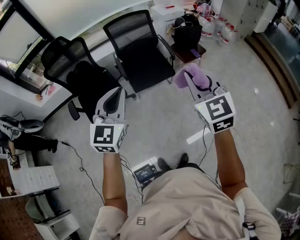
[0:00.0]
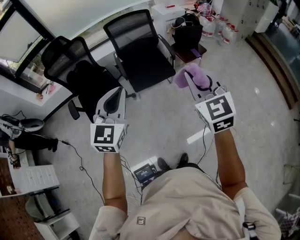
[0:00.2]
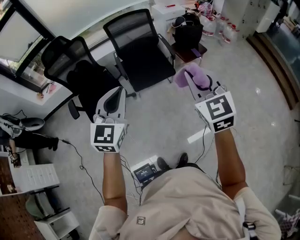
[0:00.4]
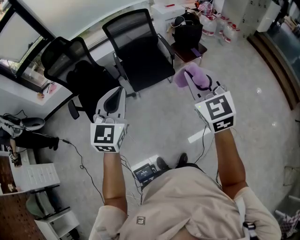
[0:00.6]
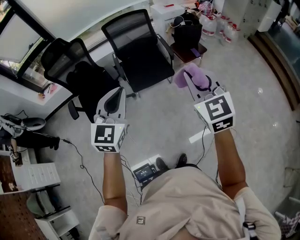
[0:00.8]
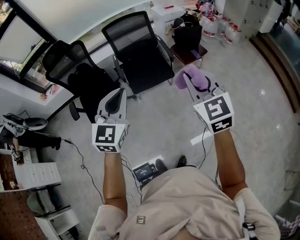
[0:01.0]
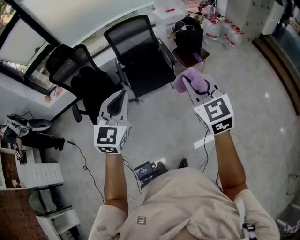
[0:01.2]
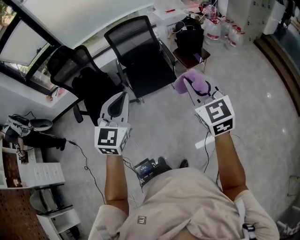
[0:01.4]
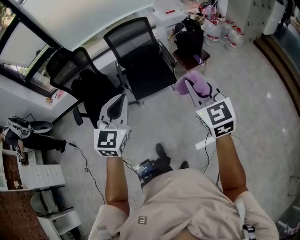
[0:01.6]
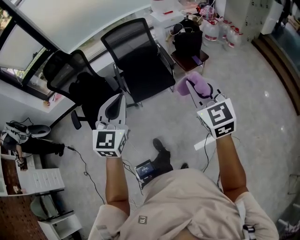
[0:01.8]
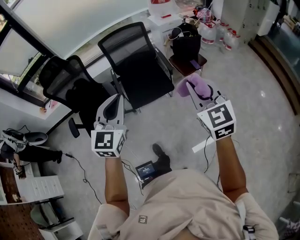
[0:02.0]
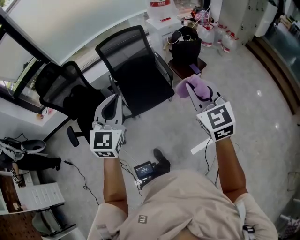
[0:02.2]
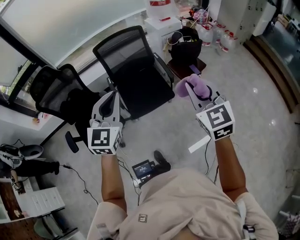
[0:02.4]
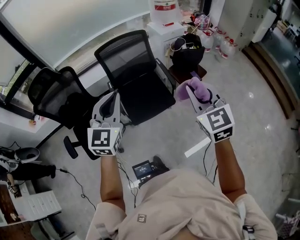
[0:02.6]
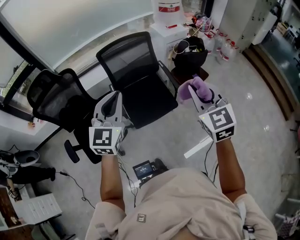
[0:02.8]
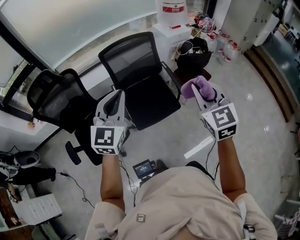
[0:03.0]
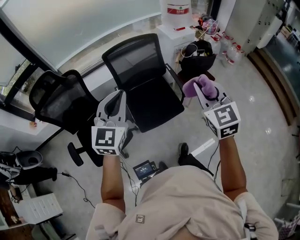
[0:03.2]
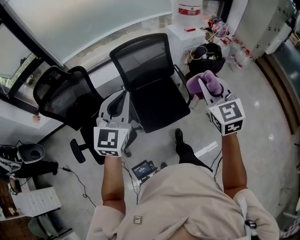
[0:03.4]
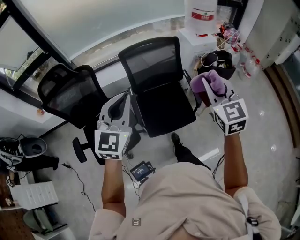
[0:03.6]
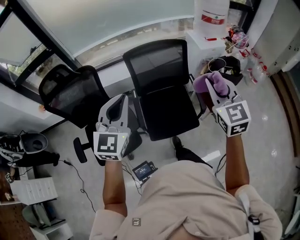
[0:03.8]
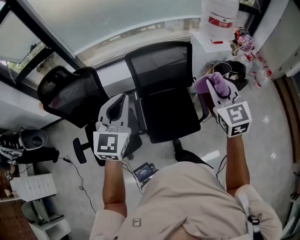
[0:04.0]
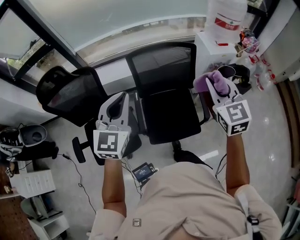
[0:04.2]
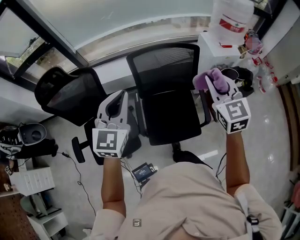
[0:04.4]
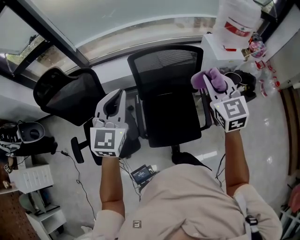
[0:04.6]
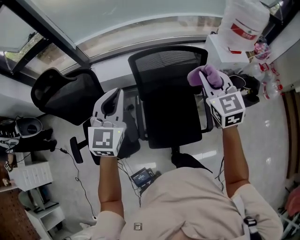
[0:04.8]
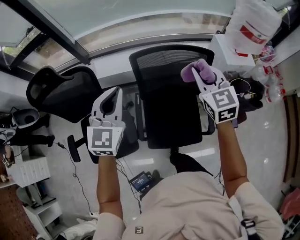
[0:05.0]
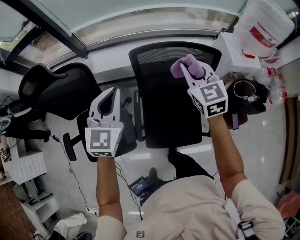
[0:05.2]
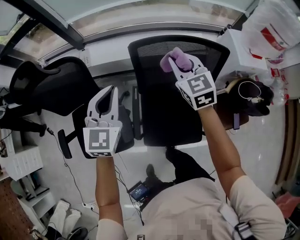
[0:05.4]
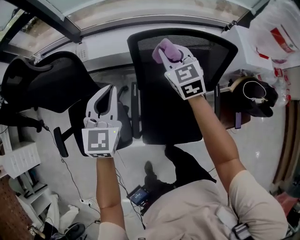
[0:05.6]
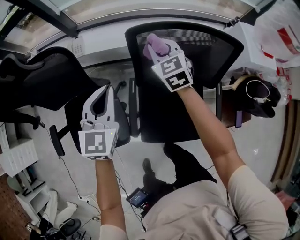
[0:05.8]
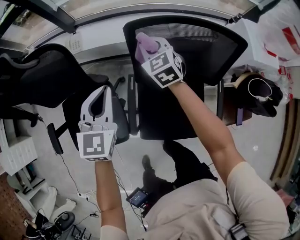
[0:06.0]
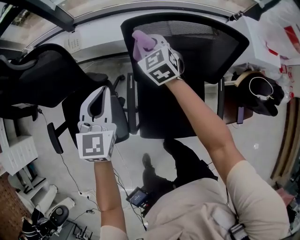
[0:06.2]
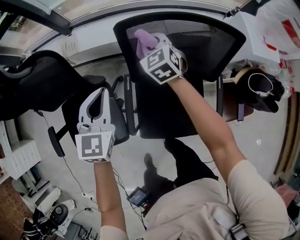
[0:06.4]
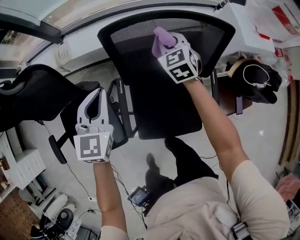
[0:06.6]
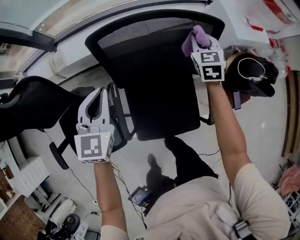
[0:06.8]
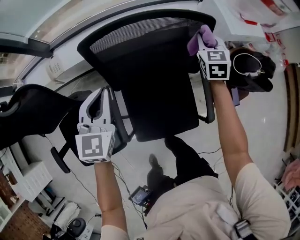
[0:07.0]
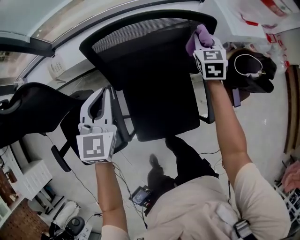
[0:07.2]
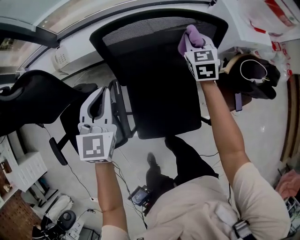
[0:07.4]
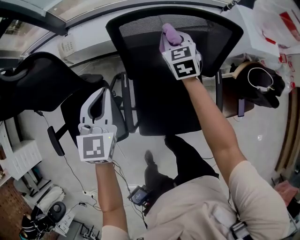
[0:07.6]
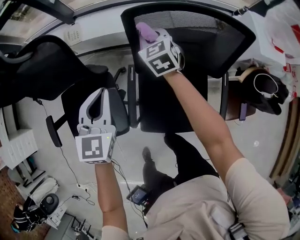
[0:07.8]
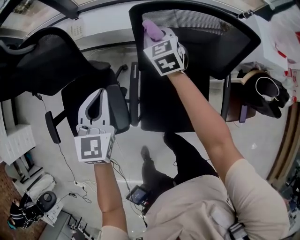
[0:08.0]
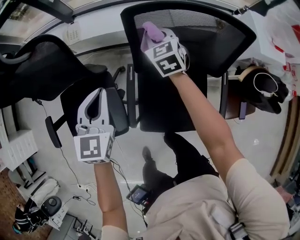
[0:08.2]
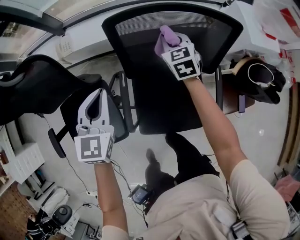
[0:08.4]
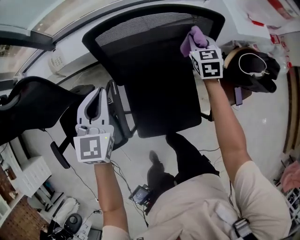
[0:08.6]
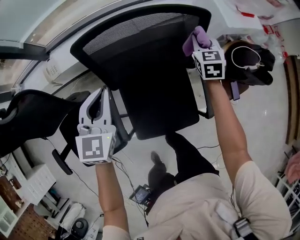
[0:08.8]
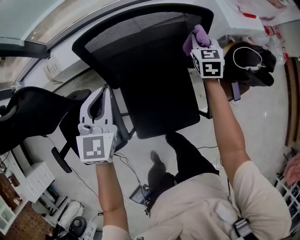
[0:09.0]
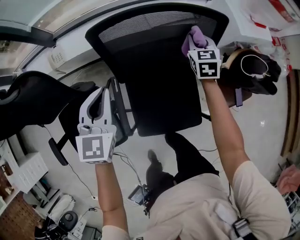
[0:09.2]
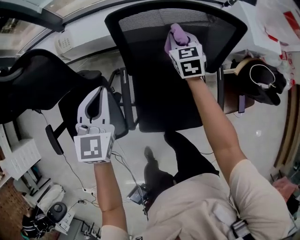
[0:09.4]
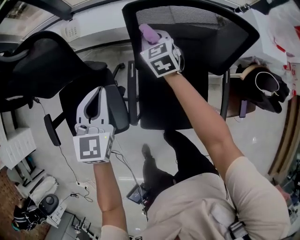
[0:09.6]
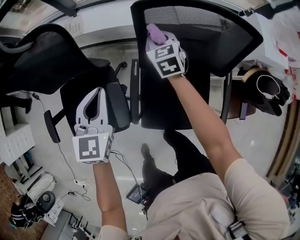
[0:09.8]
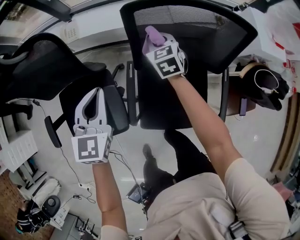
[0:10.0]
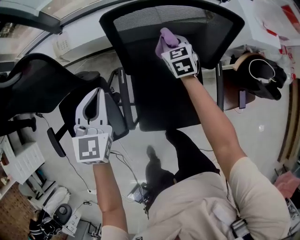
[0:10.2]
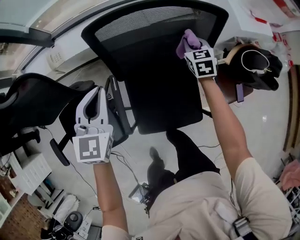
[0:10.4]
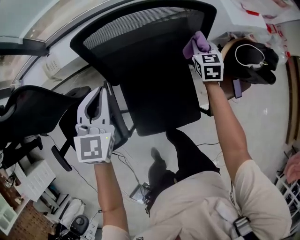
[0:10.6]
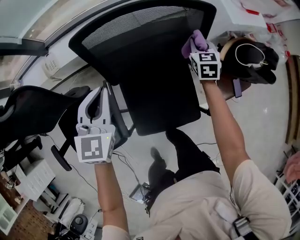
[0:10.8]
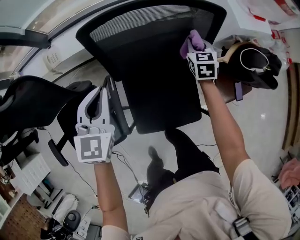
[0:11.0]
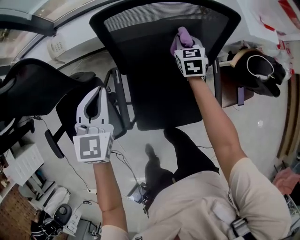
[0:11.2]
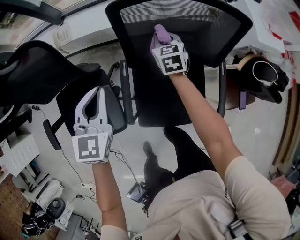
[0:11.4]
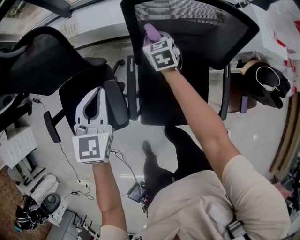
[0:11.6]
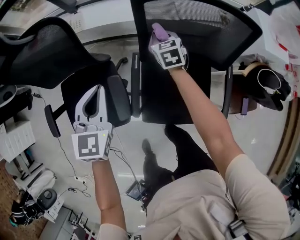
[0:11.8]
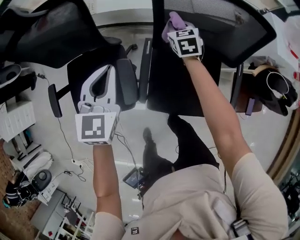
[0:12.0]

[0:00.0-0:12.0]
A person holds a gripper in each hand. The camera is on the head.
0:00.0 to 0:01.6: Both grippers move to the right, about 10 cm.
0:01.6 to 0:03.0: Both grippers move forward and to the left, about 35 cm.
0:03.0 to 0:04.4: The two grippers go some 30 cm forward.
0:04.4 to 0:06.0: The right gripper travels downward, forward and to the left by approximately 50 cm, and swivels approximately 20 degrees; the left gripper heads downward and forward, covering approximately 30 cm, and rotates some 20 degrees.
0:07.6 to 0:09.0: The left gripper ends up approximately 10 cm from where it was. Meanwhile the right gripper ends up about 25 cm from where it was, and changes its angle by approximately 20 degrees.
0:09.0 to 0:10.4: The right gripper shifts about 5 cm downward, and goes to the left and returns, about 40 cm each way, while the left gripper reaches some 20 cm to the left, then returns.
0:10.4 to 0:12.0: The left gripper changes place by roughly 15 cm; the right gripper ends up approximately 30 cm from where it was.

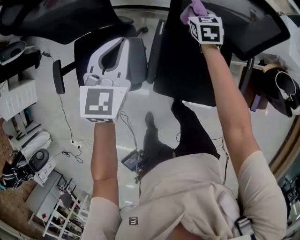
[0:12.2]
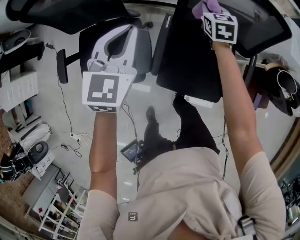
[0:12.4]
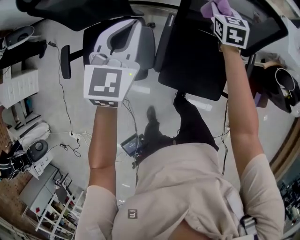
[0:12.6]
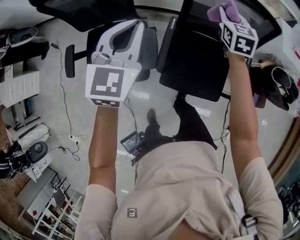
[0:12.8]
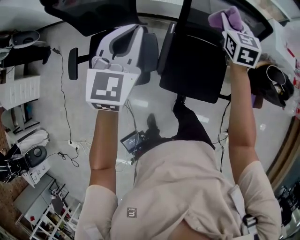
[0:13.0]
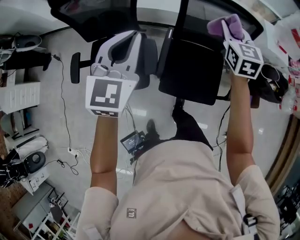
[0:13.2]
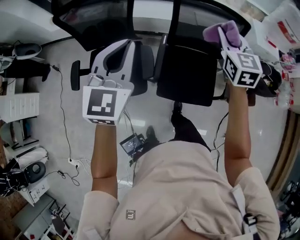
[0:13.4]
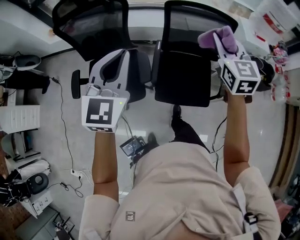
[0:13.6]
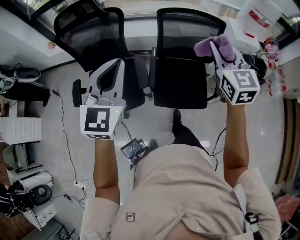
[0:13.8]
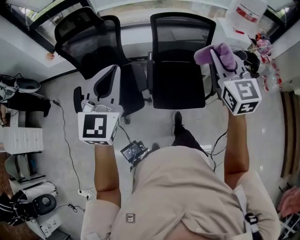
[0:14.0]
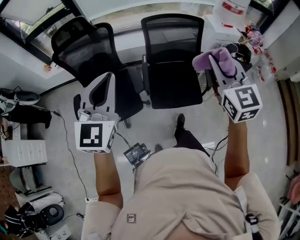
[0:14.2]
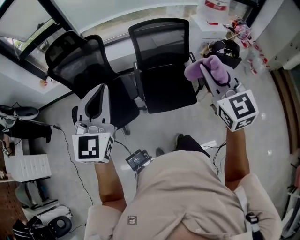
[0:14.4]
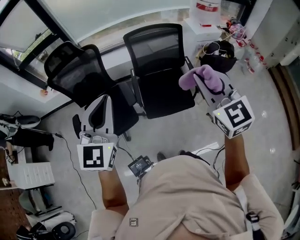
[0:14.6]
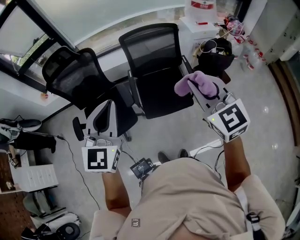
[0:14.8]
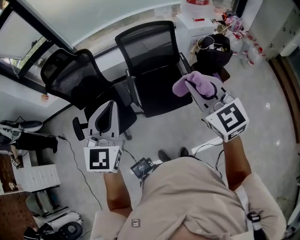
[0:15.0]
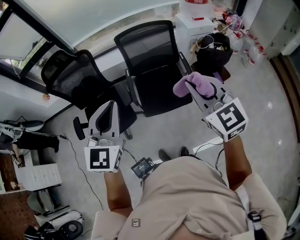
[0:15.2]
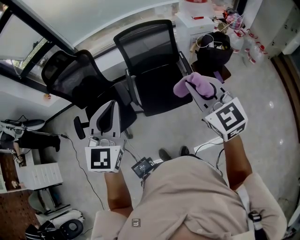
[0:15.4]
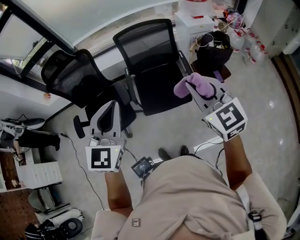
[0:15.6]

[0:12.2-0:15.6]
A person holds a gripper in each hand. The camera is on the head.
0:12.2 to 0:13.8: The left gripper is displaced upward and backward by about 40 cm, and swivels approximately 20 degrees. Meanwhile the right gripper heads upward and backward, covering roughly 60 cm, and changes its angle by roughly 30 degrees.
0:13.8 to 0:15.6: The left gripper travels to the right, backward and upward by about 25 cm. The right gripper shifts approximately 30 cm backward and to the right.

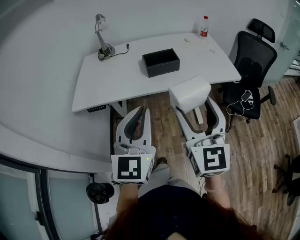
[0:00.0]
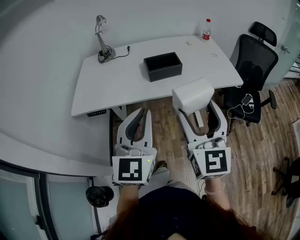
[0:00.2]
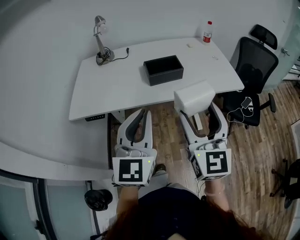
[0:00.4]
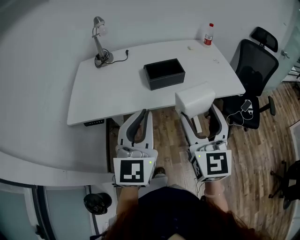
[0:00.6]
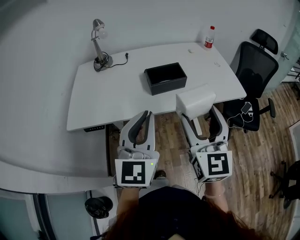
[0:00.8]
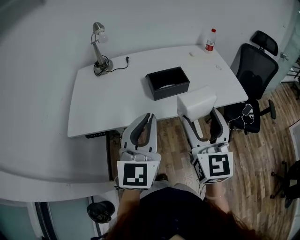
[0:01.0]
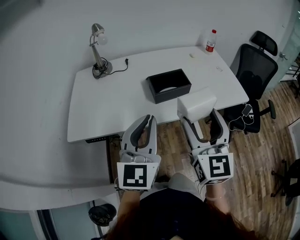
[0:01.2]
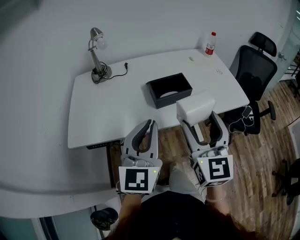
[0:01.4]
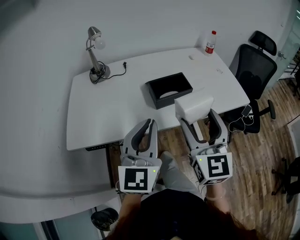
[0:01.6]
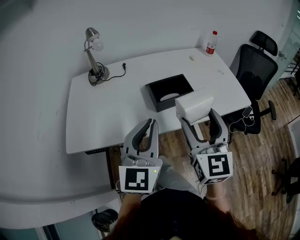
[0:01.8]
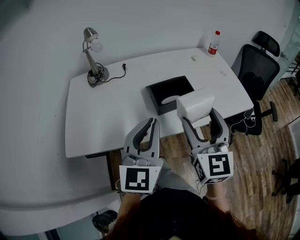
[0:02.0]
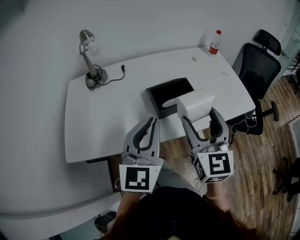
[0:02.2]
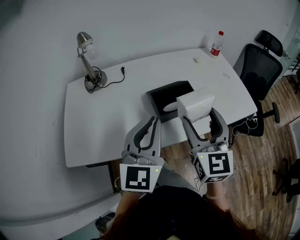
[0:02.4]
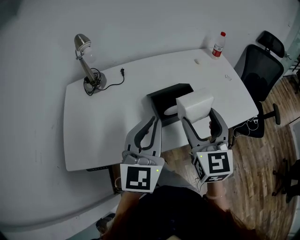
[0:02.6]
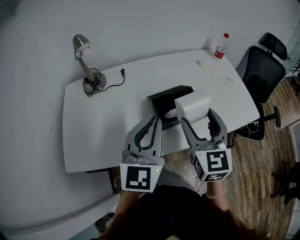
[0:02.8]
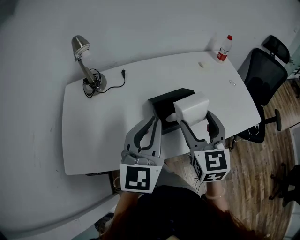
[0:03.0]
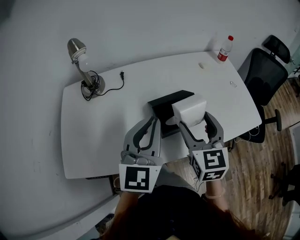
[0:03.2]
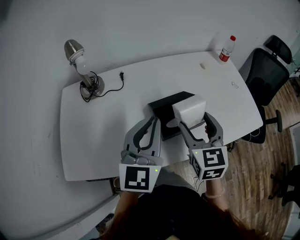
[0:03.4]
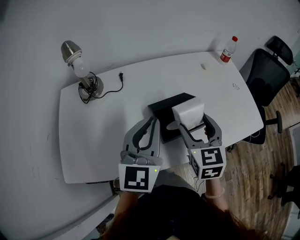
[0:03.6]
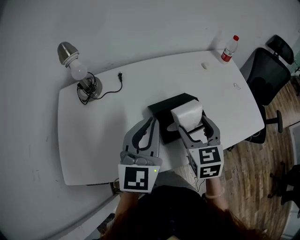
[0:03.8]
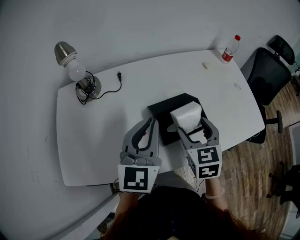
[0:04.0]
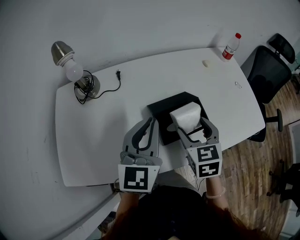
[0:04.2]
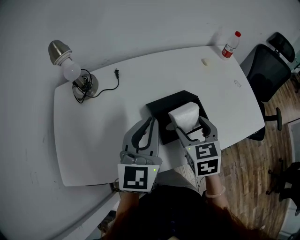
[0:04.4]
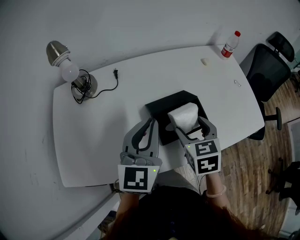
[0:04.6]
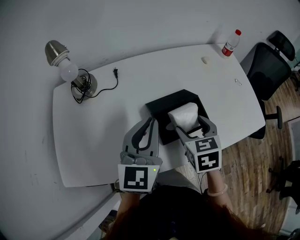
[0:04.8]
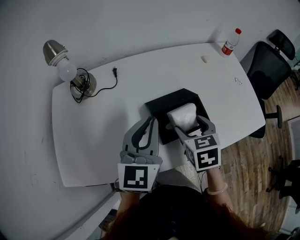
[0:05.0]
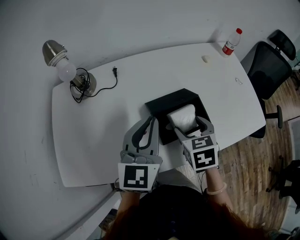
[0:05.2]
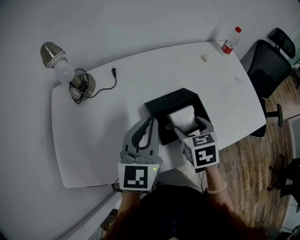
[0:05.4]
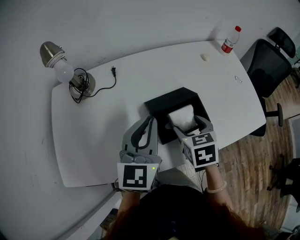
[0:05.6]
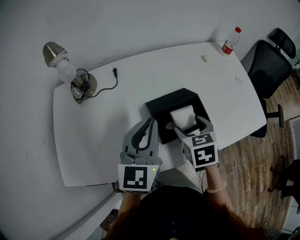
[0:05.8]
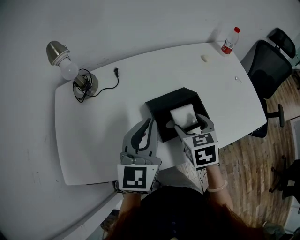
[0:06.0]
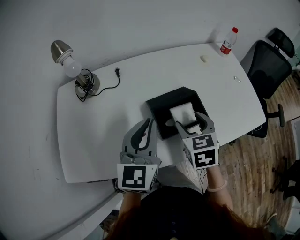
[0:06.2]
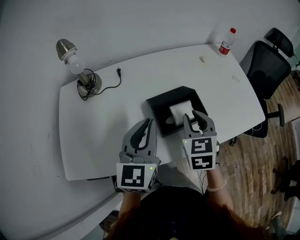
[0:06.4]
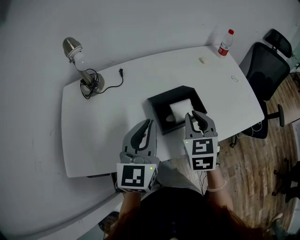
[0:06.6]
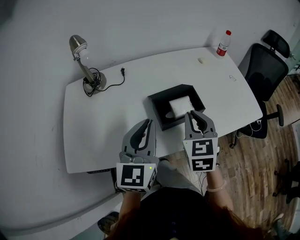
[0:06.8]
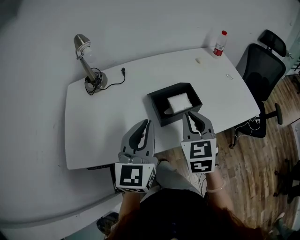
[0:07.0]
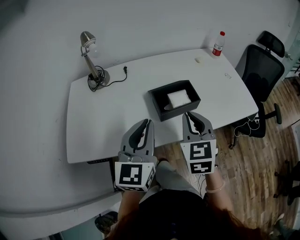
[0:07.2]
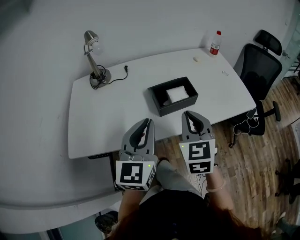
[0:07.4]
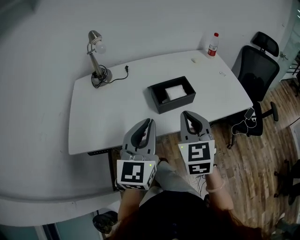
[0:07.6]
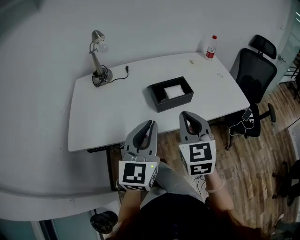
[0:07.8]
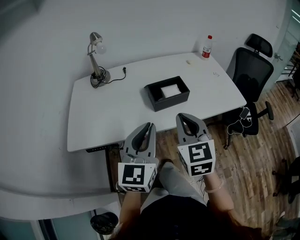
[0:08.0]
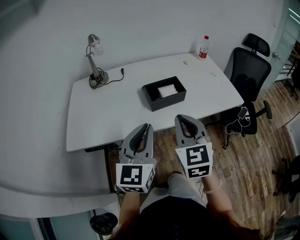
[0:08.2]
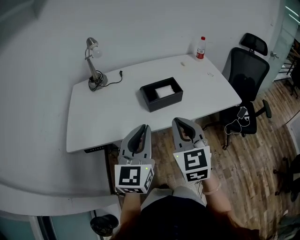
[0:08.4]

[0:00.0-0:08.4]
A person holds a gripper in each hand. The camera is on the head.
0:00.0 to 0:01.4: Both grippers move forward, roughly 15 cm.
0:01.4 to 0:02.8: The grippers both shift forward by some 15 cm.
0:02.8 to 0:04.2: The left gripper is displaced forward by approximately 10 cm; the right gripper is displaced downward and forward by approximately 15 cm, and changes its angle by about 30 degrees.
0:04.2 to 0:05.6: There are only small adjustments of the grippers.
0:05.6 to 0:07.0: The right gripper travels upward and backward by approximately 15 cm, rotates roughly 30 degrees, and closes its fingers. The left gripper moves backward, about 10 cm.
0:07.0 to 0:08.4: The two grippers go roughly 15 cm backward.
